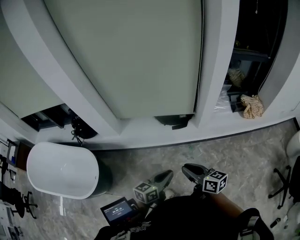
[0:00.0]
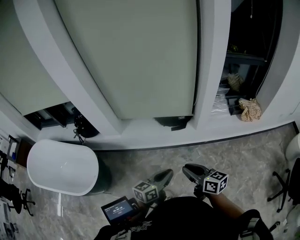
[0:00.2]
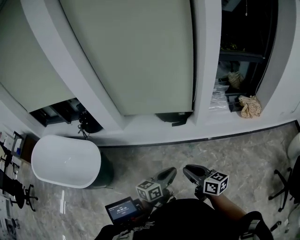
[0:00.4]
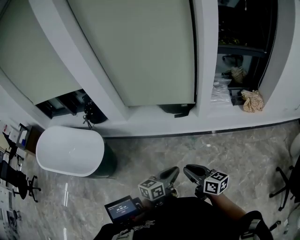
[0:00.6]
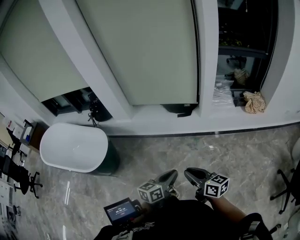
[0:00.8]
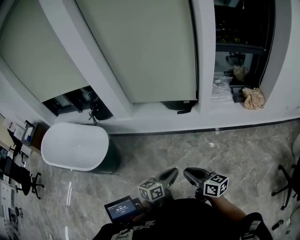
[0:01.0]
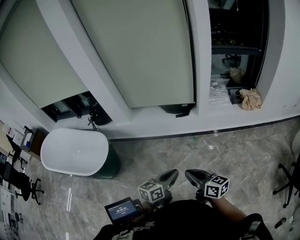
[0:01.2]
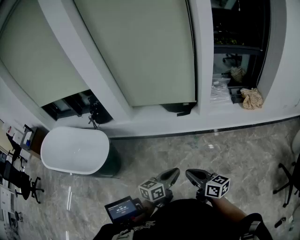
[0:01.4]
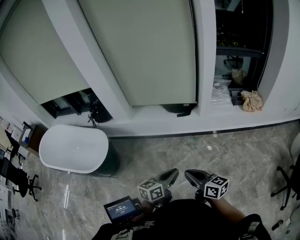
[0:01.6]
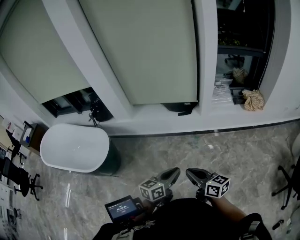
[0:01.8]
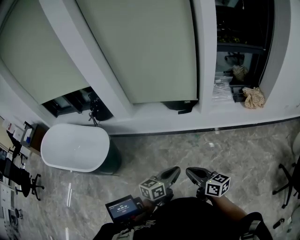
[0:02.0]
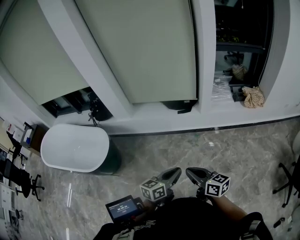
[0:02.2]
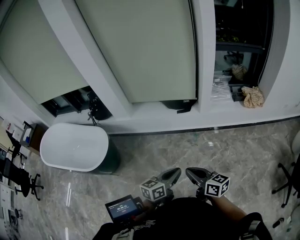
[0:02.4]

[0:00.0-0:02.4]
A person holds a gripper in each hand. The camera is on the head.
0.0 to 1.2 s: The grippers both shift backward by roughly 20 cm.
1.2 to 2.4 s: The grippers stay close to where they were, moving slightly.

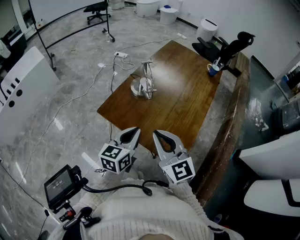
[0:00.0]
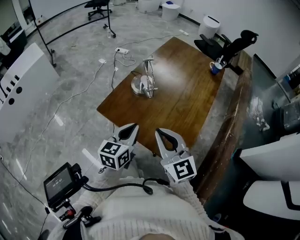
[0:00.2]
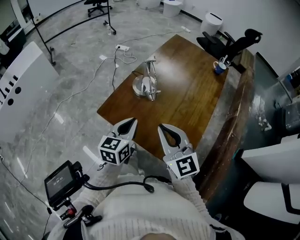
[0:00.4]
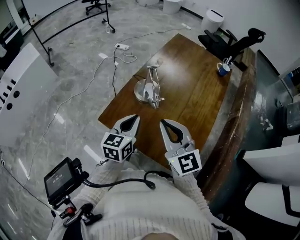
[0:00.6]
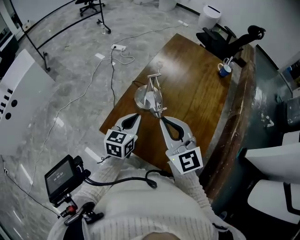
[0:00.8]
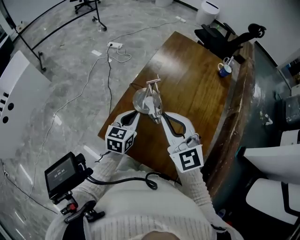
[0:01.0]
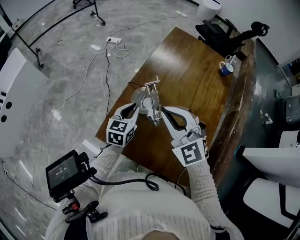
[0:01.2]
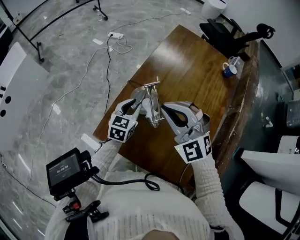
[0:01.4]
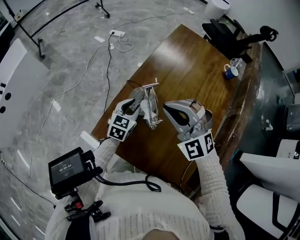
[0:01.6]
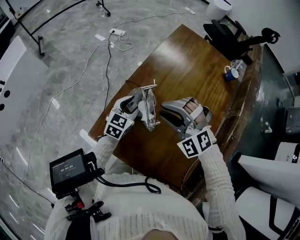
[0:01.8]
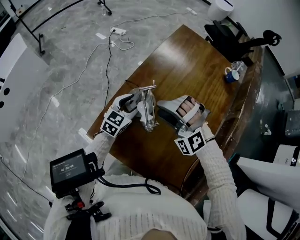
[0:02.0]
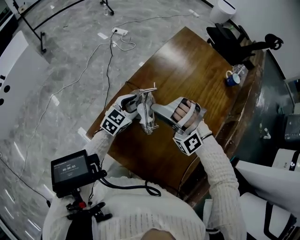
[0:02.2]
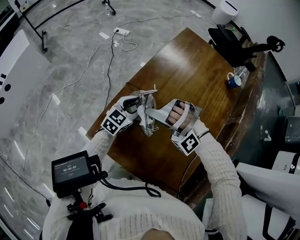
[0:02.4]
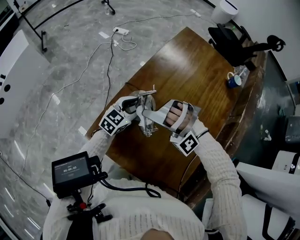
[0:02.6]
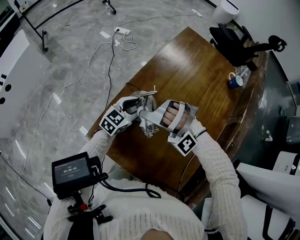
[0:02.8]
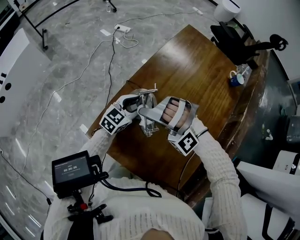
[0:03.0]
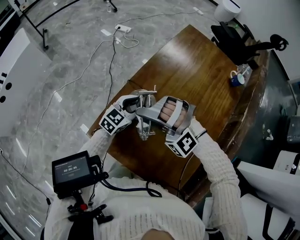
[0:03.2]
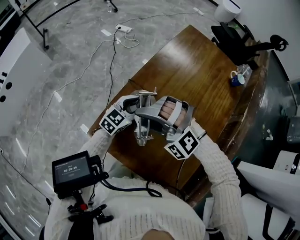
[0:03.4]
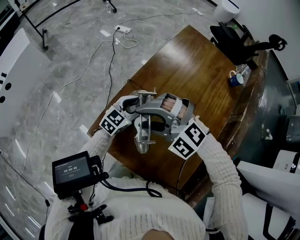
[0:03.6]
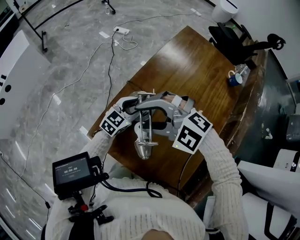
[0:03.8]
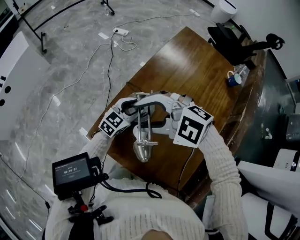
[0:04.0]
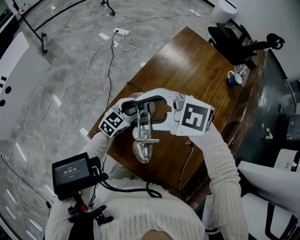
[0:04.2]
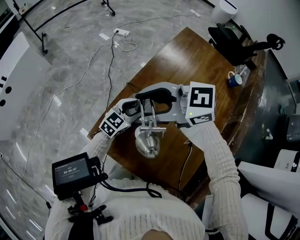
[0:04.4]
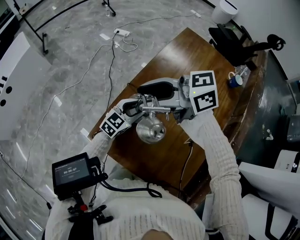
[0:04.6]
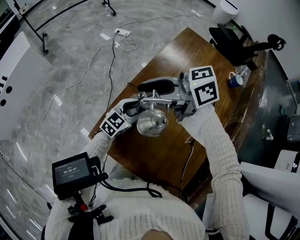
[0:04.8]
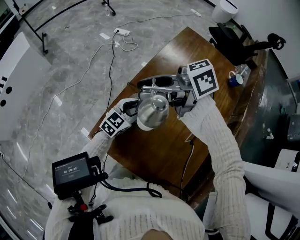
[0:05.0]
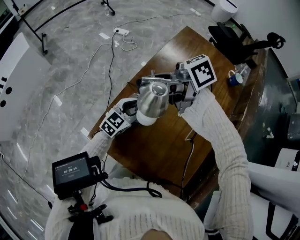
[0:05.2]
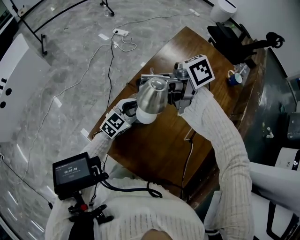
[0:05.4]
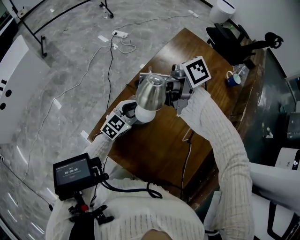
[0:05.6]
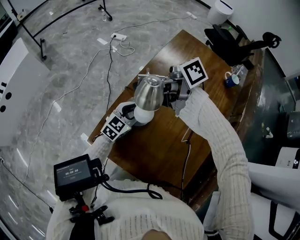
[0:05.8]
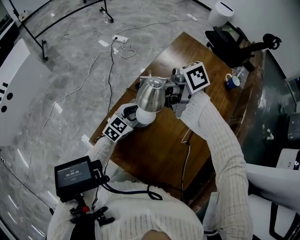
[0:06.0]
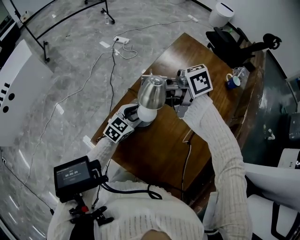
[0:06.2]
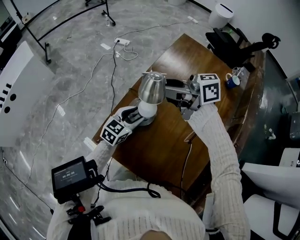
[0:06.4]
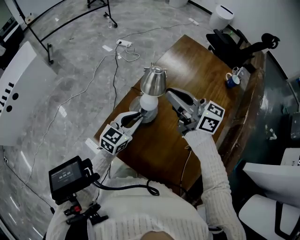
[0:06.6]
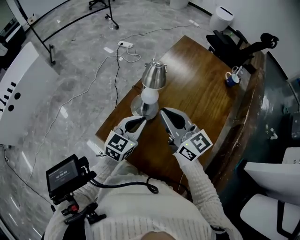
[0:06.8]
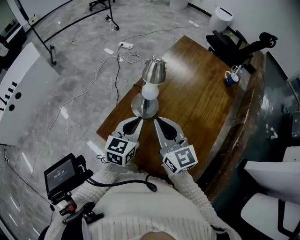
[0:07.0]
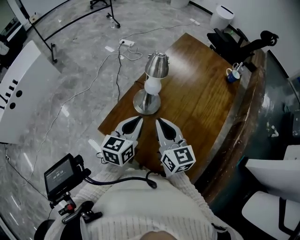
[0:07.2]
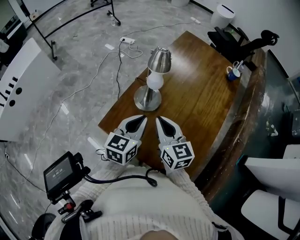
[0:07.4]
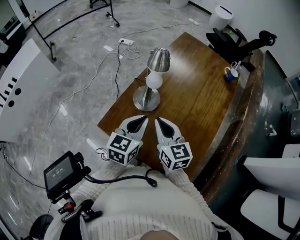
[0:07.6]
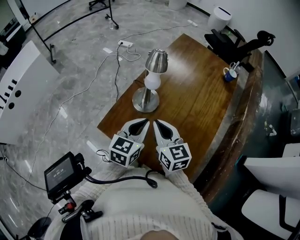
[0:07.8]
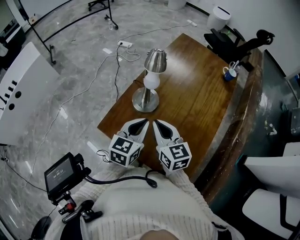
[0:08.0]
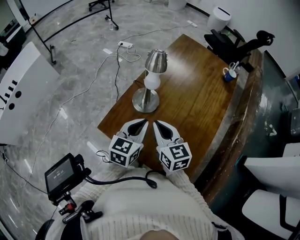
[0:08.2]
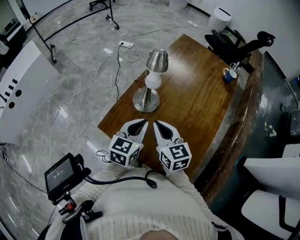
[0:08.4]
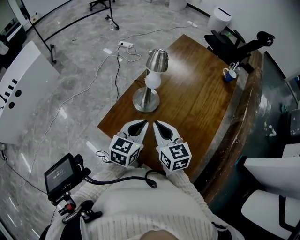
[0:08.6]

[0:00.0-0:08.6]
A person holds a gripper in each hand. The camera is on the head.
0.0 to 1.4 s: Both grippers travel together forward, roughly 30 cm. The right gripper rotates around the line of its fingers by about 40 degrees, counterclockwise from behind.
1.4 to 2.8 s: The right gripper travels downward and to the left by approximately 10 cm, rotates around the line of its fingers by approximately 60 degrees, counterclockwise from behind, and opens, while the left gripper opens.
2.8 to 4.4 s: The right gripper is displaced upward by some 10 cm, and twists some 100 degrees clockwise, seen from behind.
4.4 to 5.8 s: The right gripper changes place by some 5 cm, and rotates around the line of its fingers by roughly 40 degrees, clockwise from behind.
5.8 to 7.2 s: The left gripper changes place by approximately 20 cm, turns by roughly 30 degrees, and closes its fingers. The right gripper shifts by roughly 20 cm, rotates approximately 80 degrees, and closes.
7.2 to 8.6 s: The grippers move only a little.

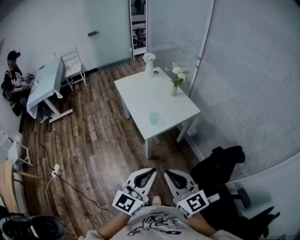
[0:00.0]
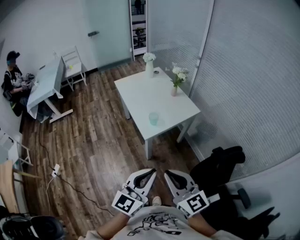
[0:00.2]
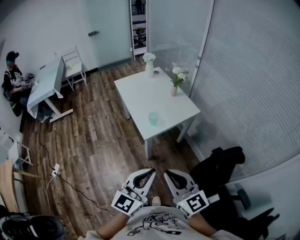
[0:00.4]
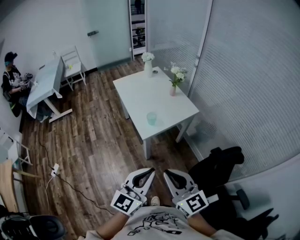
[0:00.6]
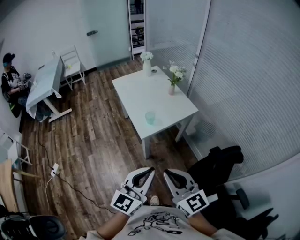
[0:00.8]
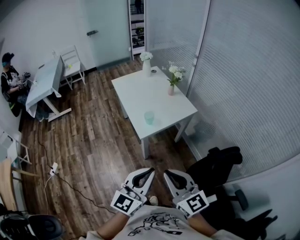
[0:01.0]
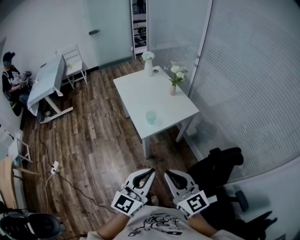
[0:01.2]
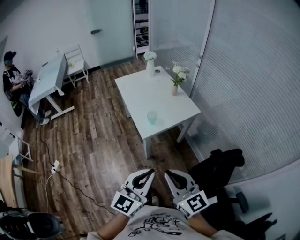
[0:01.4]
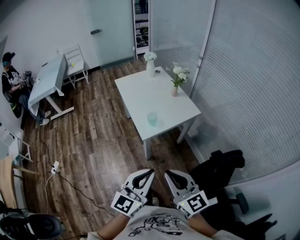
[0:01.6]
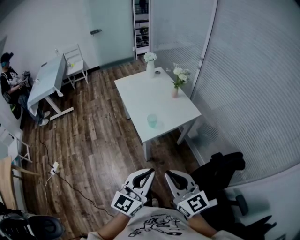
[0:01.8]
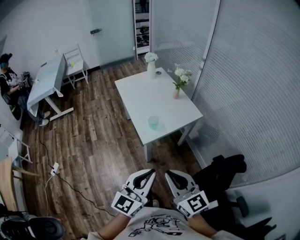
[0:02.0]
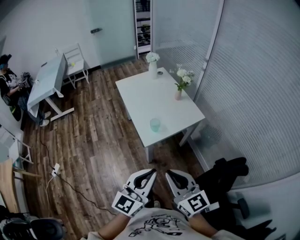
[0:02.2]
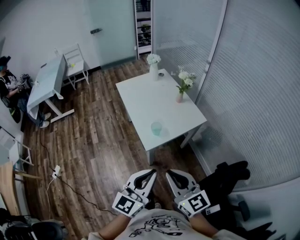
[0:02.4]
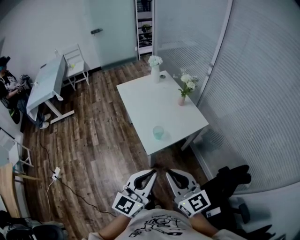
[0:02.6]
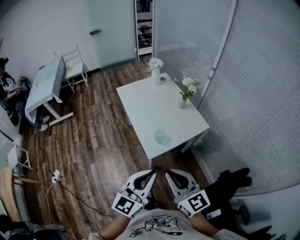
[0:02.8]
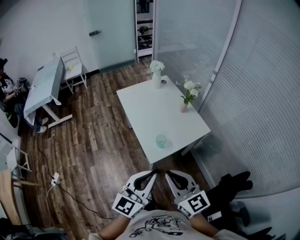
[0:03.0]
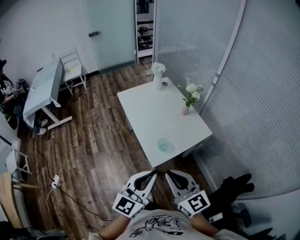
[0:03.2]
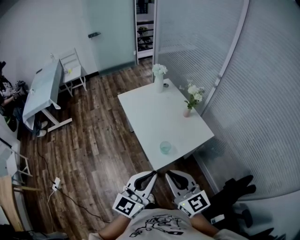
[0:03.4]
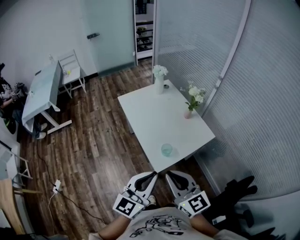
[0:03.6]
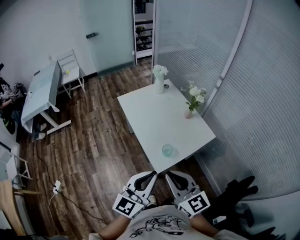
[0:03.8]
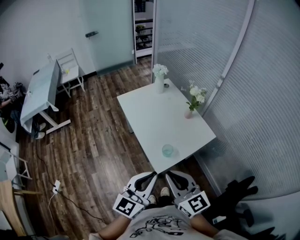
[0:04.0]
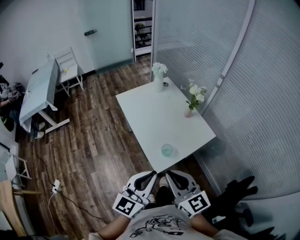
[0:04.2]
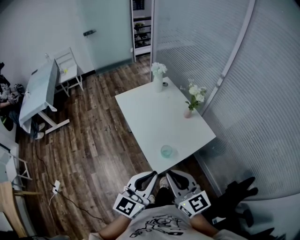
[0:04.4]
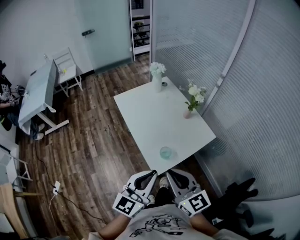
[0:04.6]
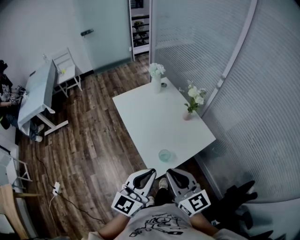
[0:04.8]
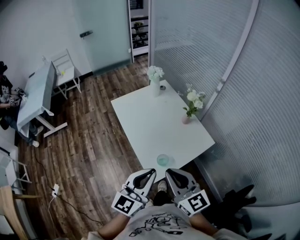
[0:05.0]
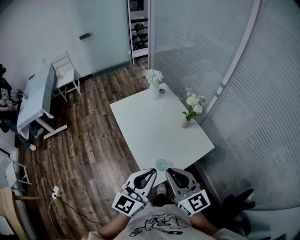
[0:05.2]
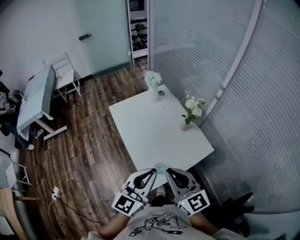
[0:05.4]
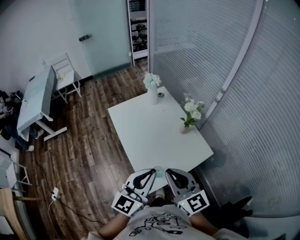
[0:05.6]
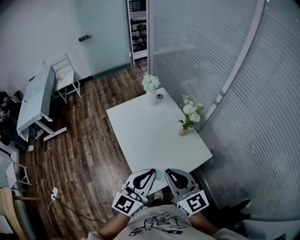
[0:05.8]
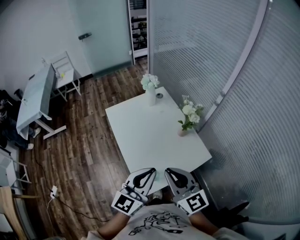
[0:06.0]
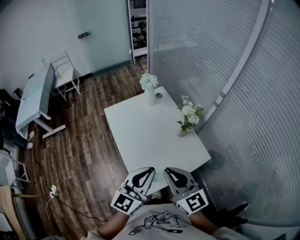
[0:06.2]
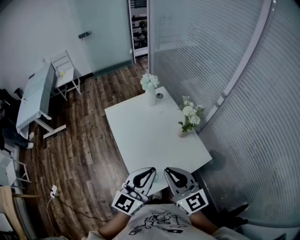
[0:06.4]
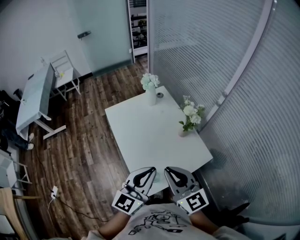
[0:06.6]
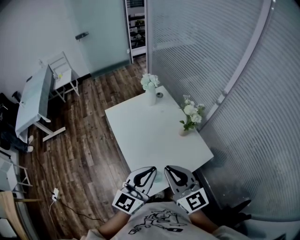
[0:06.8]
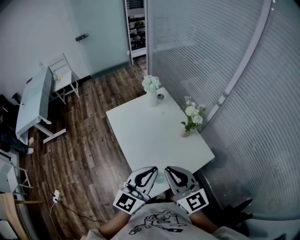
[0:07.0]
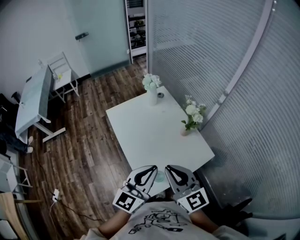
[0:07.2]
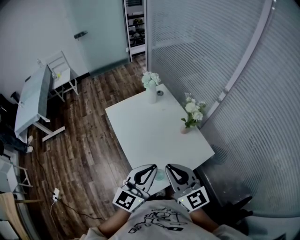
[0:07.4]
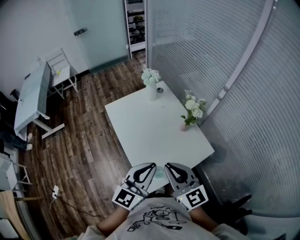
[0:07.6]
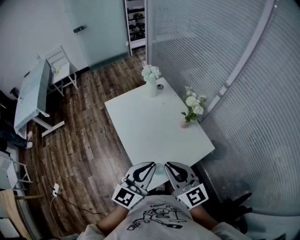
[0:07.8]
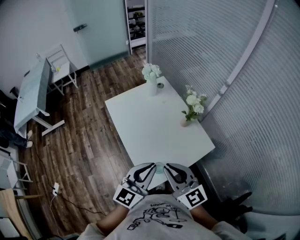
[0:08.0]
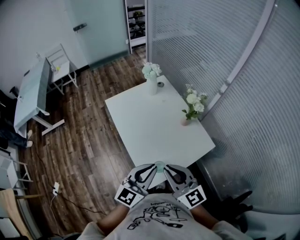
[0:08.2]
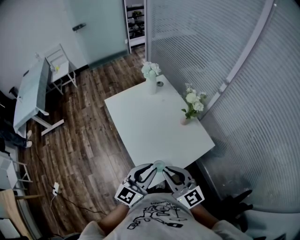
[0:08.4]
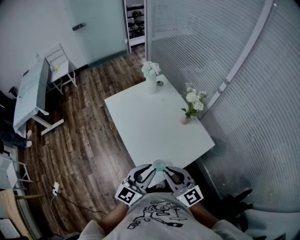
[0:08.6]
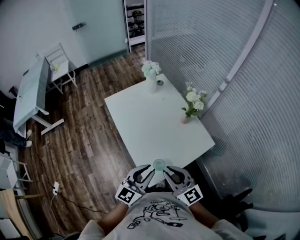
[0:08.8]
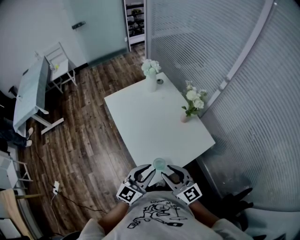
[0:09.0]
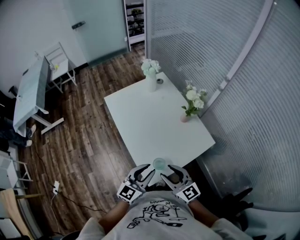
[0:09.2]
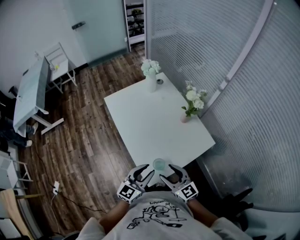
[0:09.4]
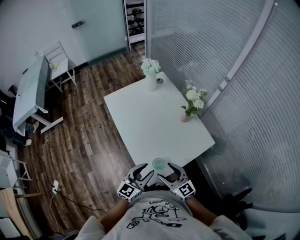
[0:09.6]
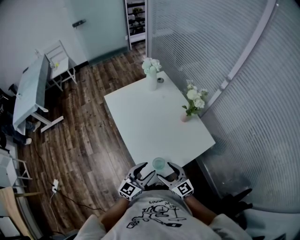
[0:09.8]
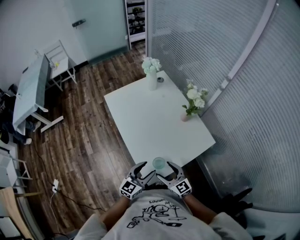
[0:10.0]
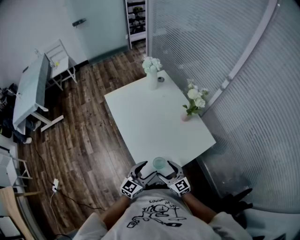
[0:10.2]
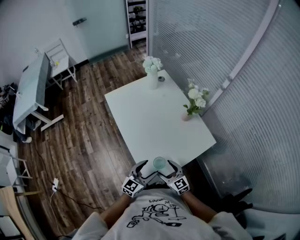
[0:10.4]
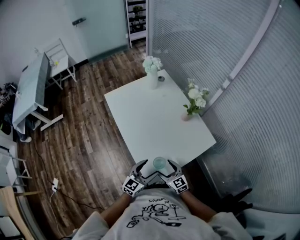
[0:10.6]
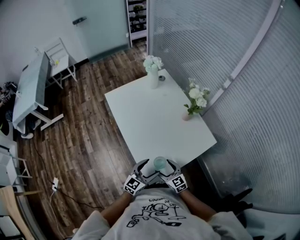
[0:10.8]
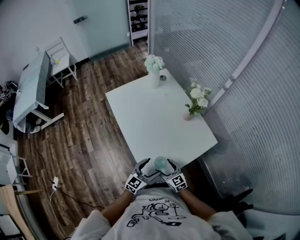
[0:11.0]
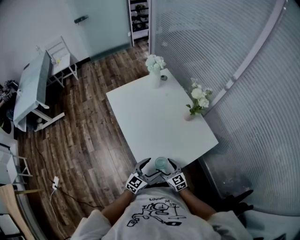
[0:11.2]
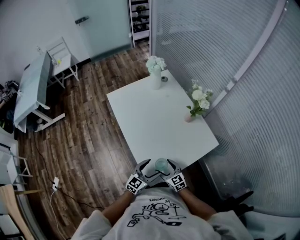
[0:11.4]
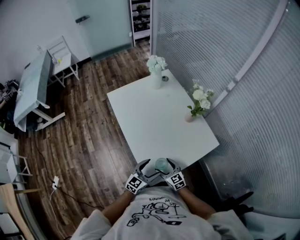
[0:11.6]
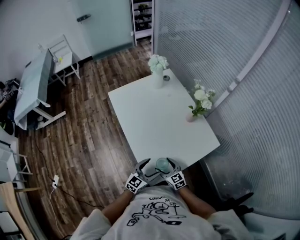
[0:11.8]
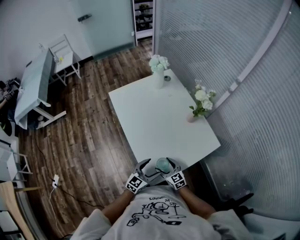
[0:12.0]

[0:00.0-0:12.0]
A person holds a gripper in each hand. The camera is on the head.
0.0 to 1.6 s: There are only small adjustments of the grippers.
1.6 to 3.0 s: Both grippers travel together forward, approximately 20 cm.
3.0 to 4.4 s: Both grippers move forward, about 10 cm.
4.4 to 6.0 s: The grippers both shift forward and to the right by about 20 cm.
6.0 to 7.6 s: There are only small adjustments of the grippers.
7.6 to 9.0 s: The right gripper moves downward and backward, roughly 15 cm. The left gripper goes about 10 cm downward.
9.0 to 10.4 s: Both grippers move downward, approximately 15 cm. The left gripper opens its fingers. The right gripper opens its fingers.
10.4 to 12.0 s: The grippers both shift downward by about 5 cm.

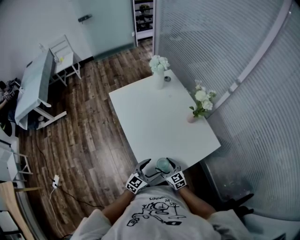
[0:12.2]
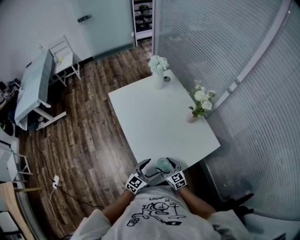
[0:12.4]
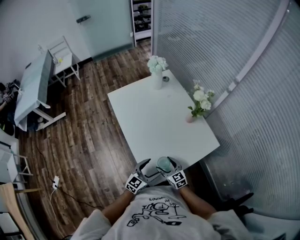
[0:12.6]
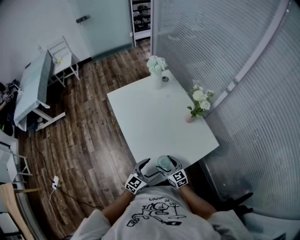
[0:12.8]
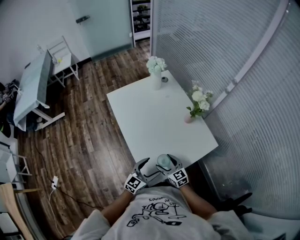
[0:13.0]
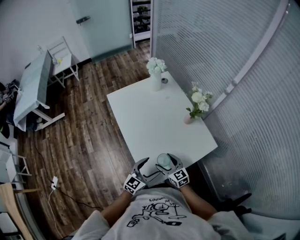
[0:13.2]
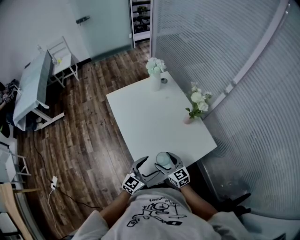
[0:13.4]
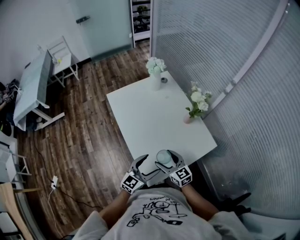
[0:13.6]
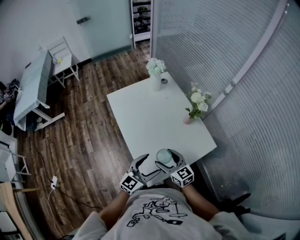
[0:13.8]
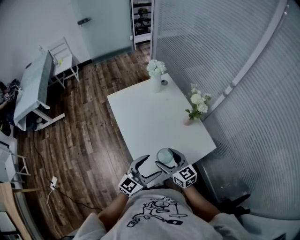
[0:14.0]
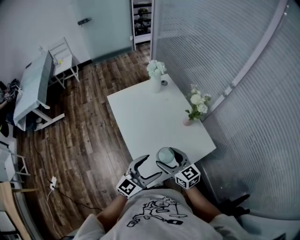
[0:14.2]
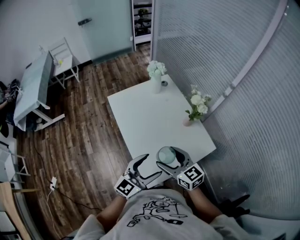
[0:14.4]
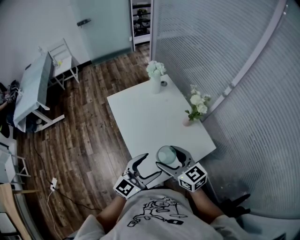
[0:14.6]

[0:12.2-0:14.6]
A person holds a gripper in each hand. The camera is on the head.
12.2 to 13.4 s: Both grippers travel together upward, some 10 cm.
13.4 to 14.6 s: The two grippers go some 20 cm upward.
